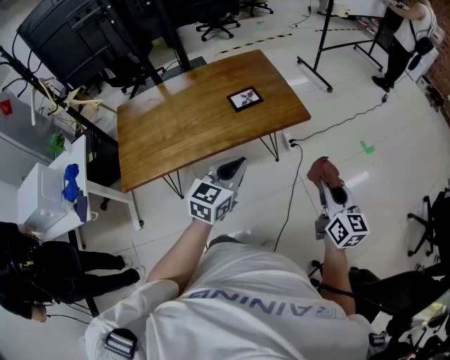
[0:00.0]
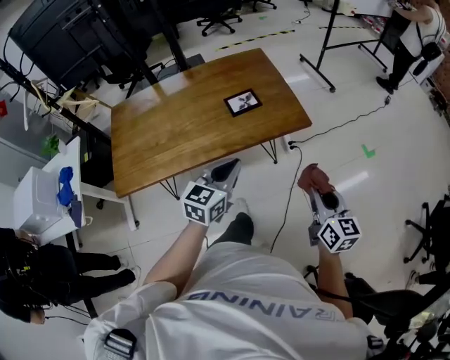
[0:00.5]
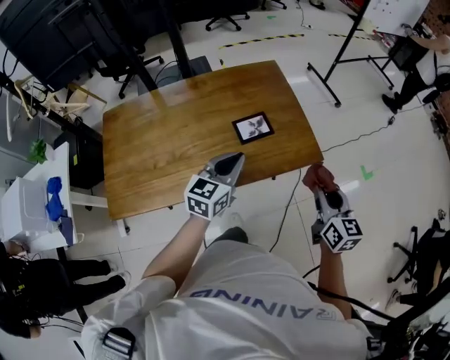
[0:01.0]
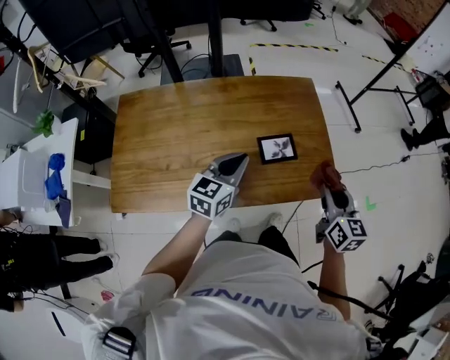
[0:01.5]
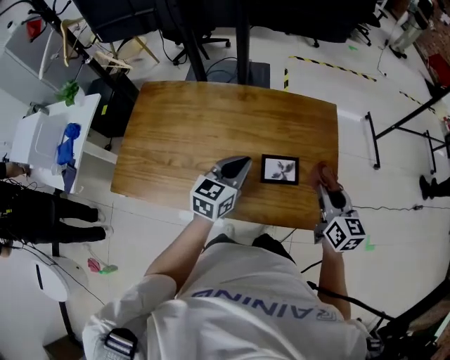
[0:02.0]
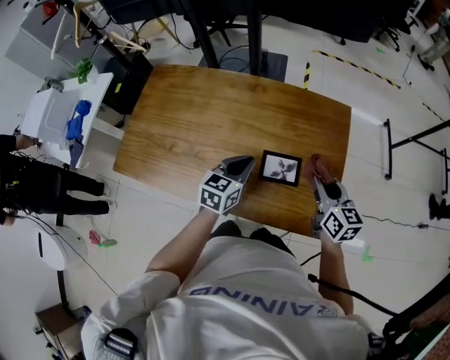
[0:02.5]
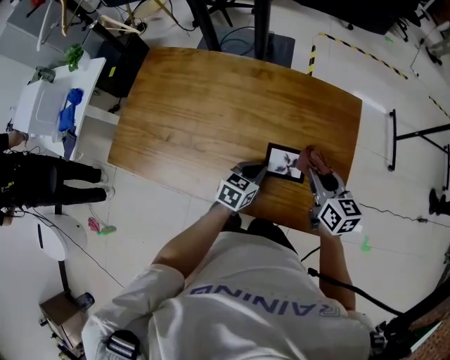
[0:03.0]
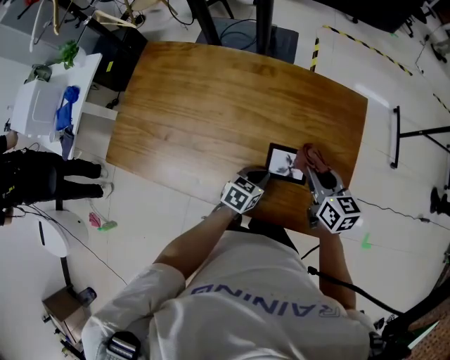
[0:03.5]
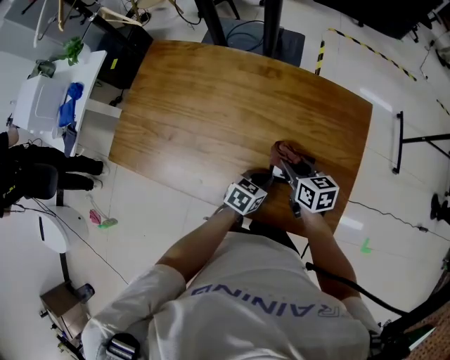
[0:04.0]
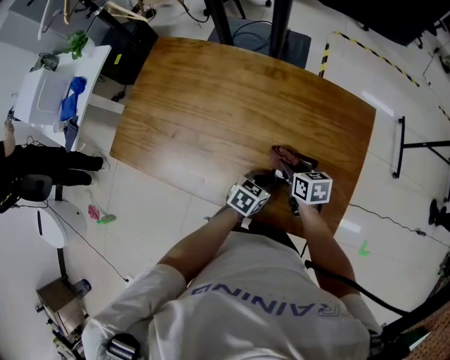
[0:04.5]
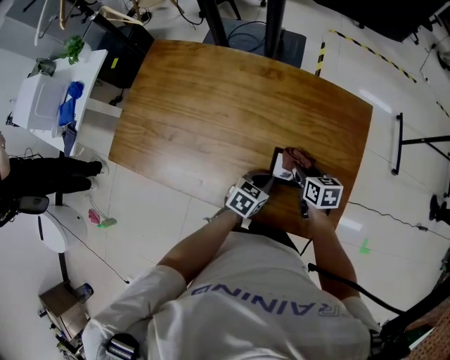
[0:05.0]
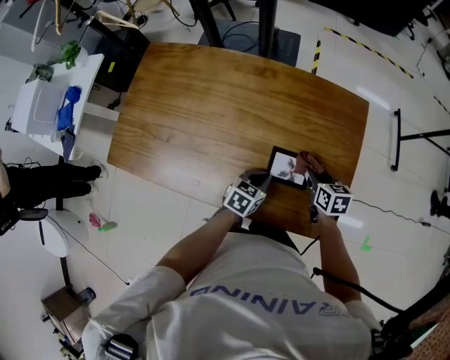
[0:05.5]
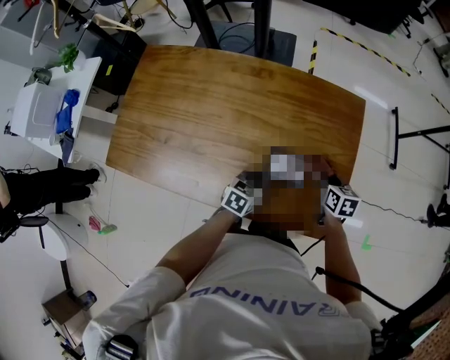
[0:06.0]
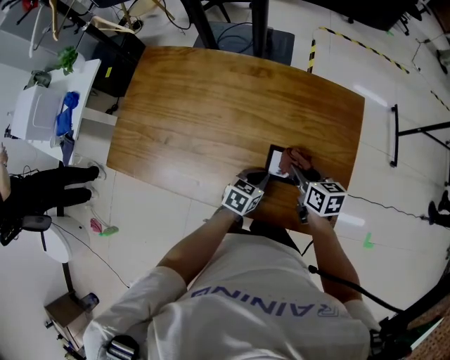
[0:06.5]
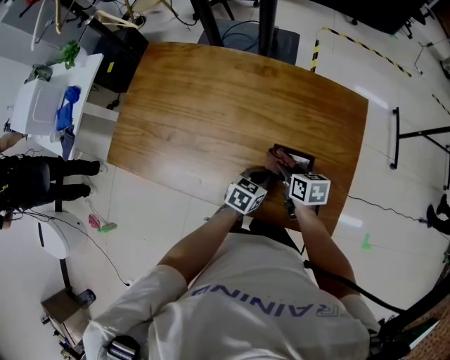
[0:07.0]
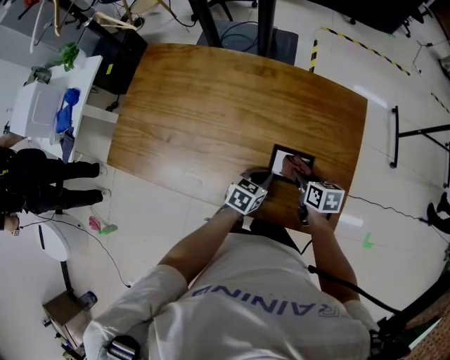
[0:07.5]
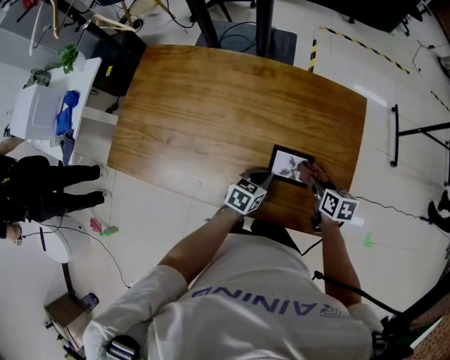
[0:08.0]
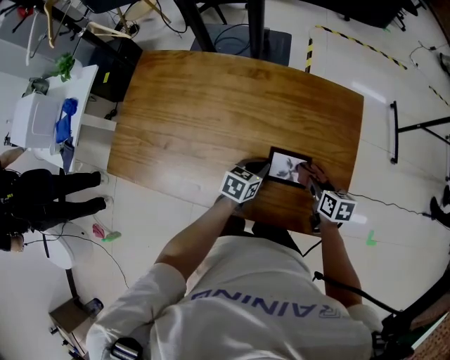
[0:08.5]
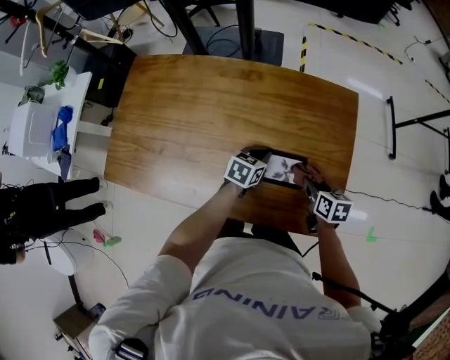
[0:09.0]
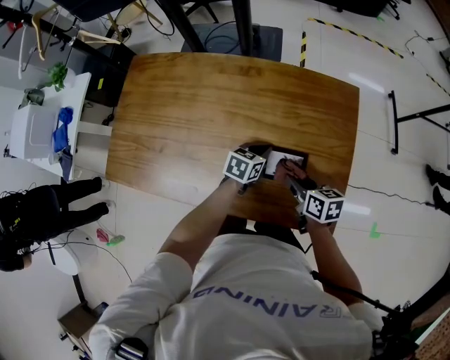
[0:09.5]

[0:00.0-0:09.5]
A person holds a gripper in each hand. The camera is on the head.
0:00.0 to 0:02.0: The left gripper changes place by some 35 cm, and swivels approximately 30 degrees. Meanwhile the right gripper changes place by some 50 cm, and turns by about 30 degrees.
0:02.0 to 0:04.0: The right gripper goes approximately 25 cm downward, to the left and forward, and swivels approximately 30 degrees; the left gripper travels downward by about 20 cm, and turns by about 30 degrees.
0:04.0 to 0:05.5: The right gripper shifts about 10 cm to the right.
0:05.5 to 0:07.5: The right gripper swings left and right, some 15 cm each way, with 2 reversals.
0:07.5 to 0:09.5: The left gripper shifts about 10 cm forward, while the right gripper goes to the right and returns, approximately 5 cm each way.

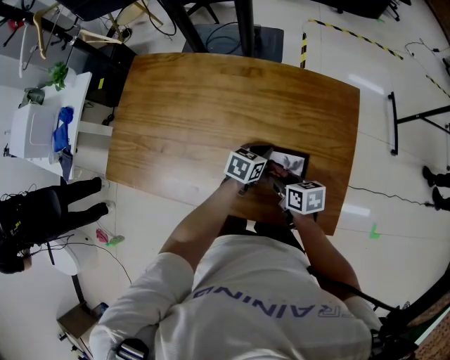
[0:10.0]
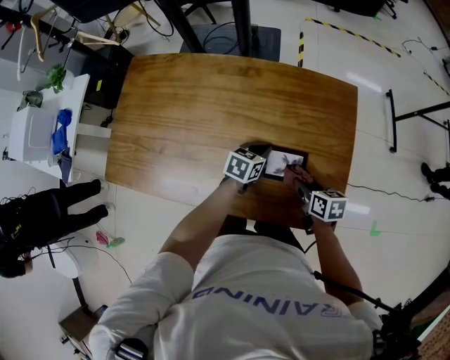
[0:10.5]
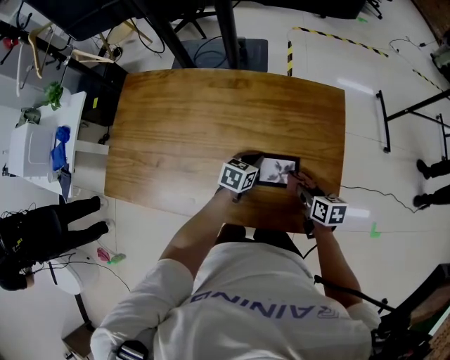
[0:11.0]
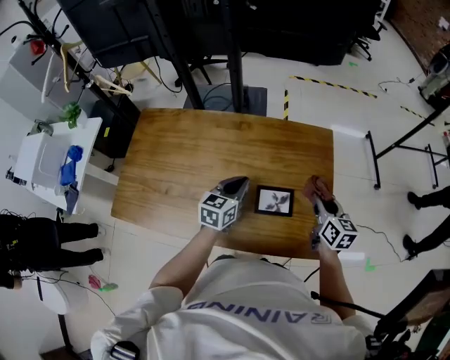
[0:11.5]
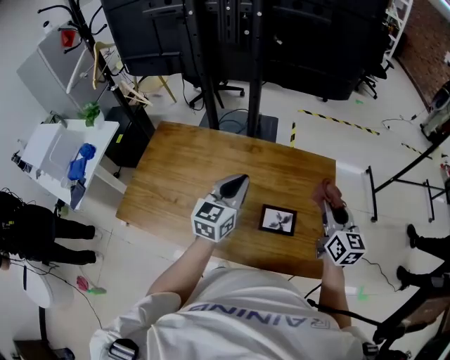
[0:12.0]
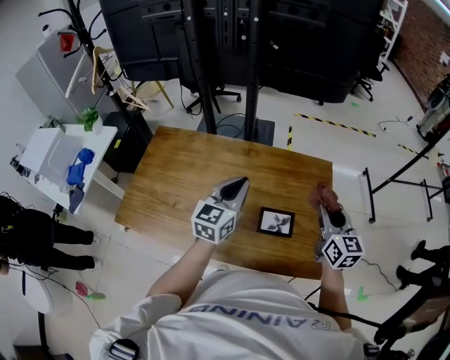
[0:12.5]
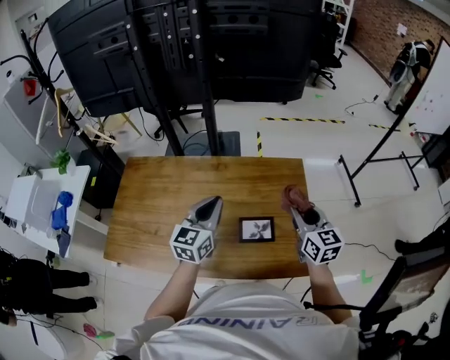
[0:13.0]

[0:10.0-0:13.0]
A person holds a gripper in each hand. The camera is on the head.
0:10.0 to 0:11.5: The right gripper heads to the right and upward, covering roughly 20 cm, and turns by some 40 degrees. Meanwhile the left gripper goes some 15 cm upward, and rotates roughly 20 degrees.
0:11.5 to 0:13.0: The grippers both shift upward by some 10 cm.

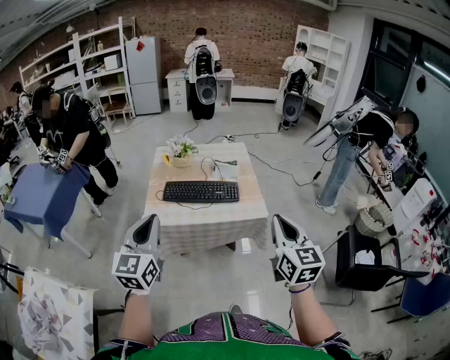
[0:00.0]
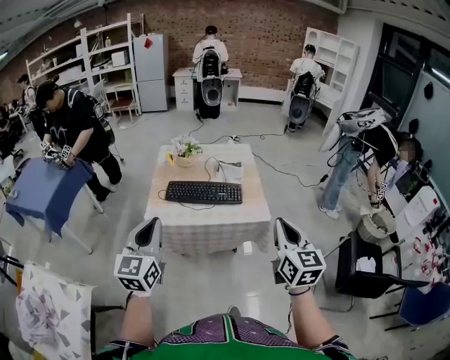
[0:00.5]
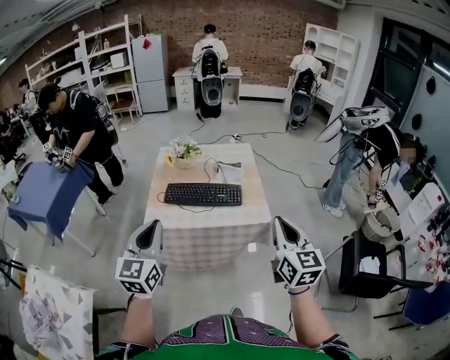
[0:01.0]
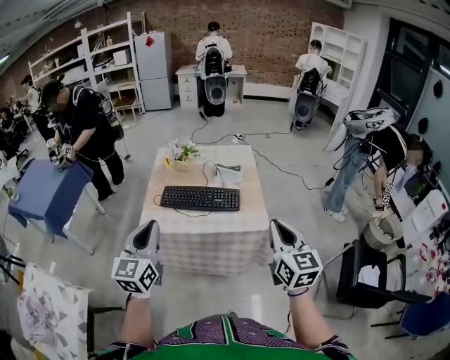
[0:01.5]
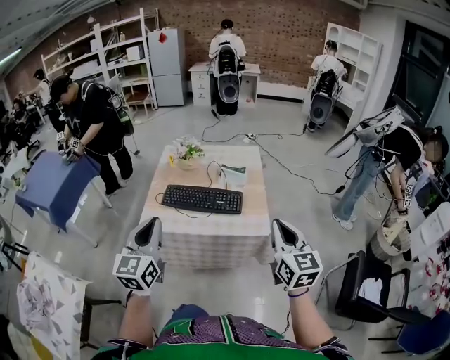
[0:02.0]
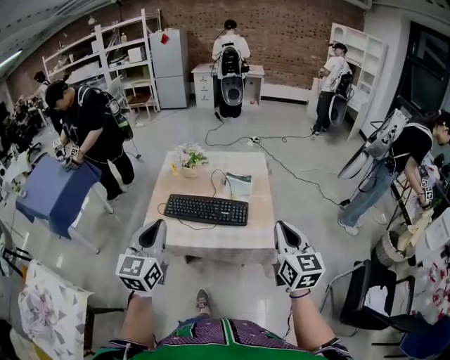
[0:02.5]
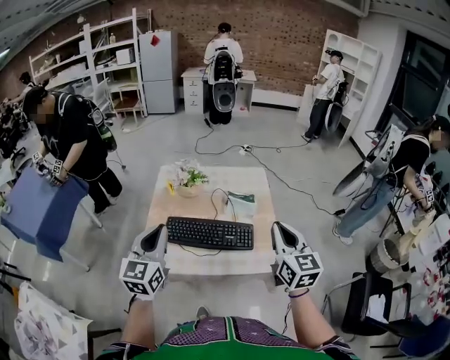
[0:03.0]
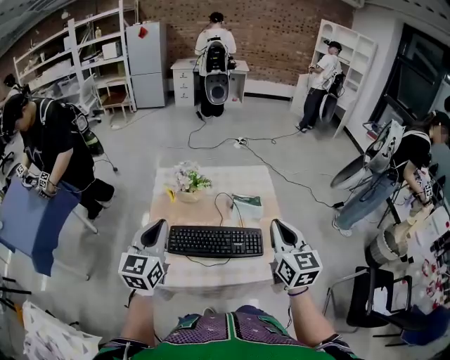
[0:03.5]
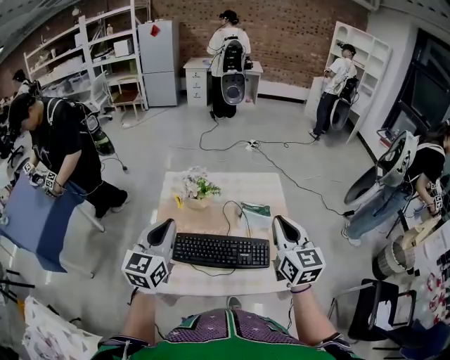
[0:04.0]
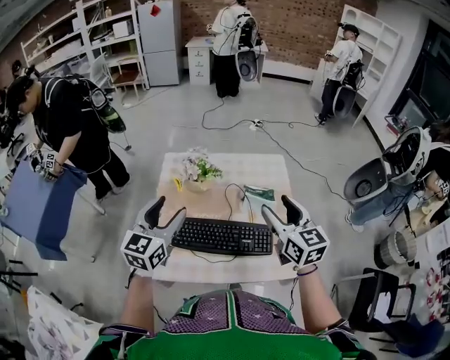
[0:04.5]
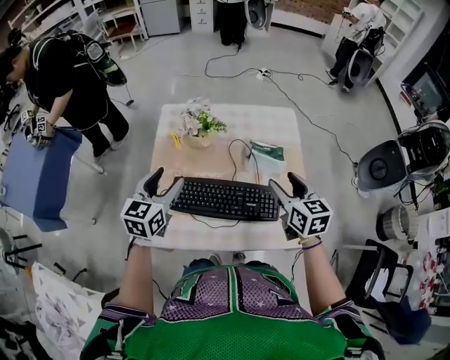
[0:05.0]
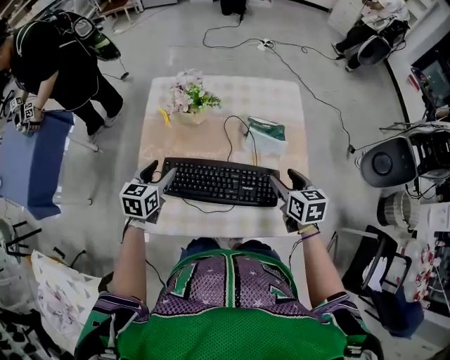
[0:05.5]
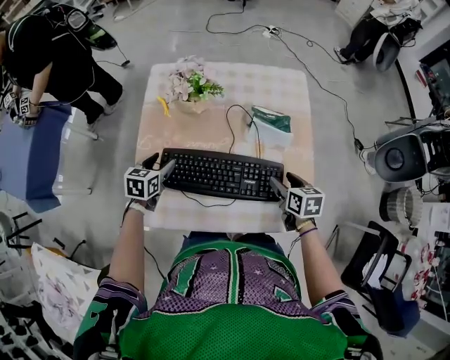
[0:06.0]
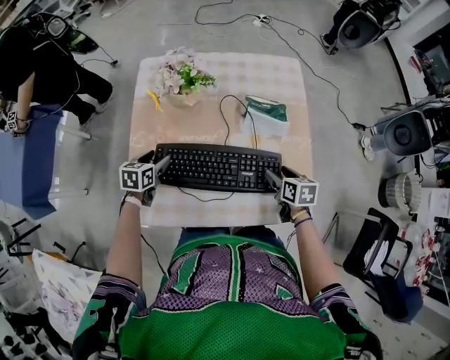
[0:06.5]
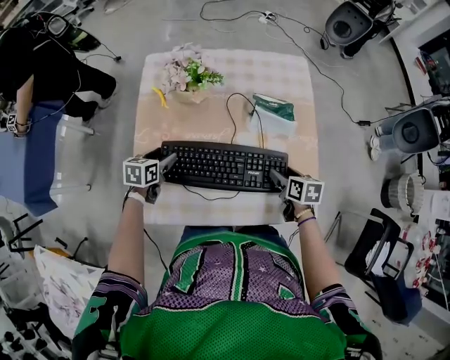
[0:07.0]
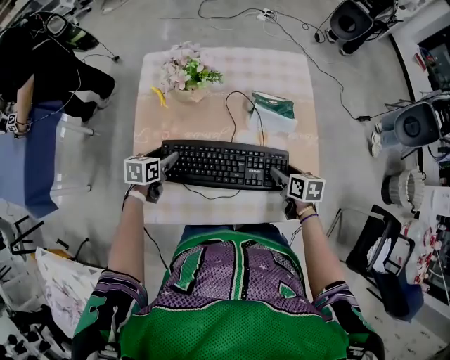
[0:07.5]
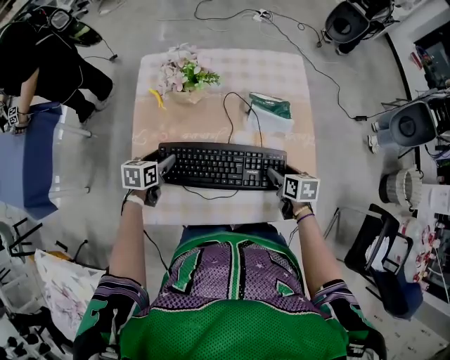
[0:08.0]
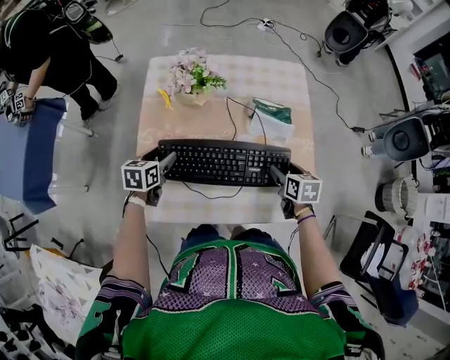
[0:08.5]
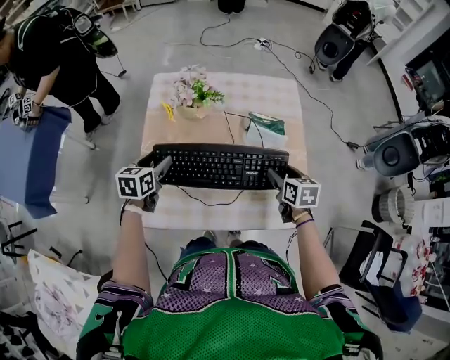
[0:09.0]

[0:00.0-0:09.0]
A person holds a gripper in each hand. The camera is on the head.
0:00.0 to 0:02.0: The two grippers go roughly 15 cm forward and to the right.
0:02.0 to 0:04.5: The right gripper is displaced forward and to the left by some 40 cm, and opens, while the left gripper goes approximately 35 cm forward, and opens.
0:04.5 to 0:07.0: The grippers both shift downward by roughly 35 cm. The right gripper angles its fingers downward, by some 40 degrees. Meanwhile the left gripper tilts its fingers some 40 degrees downward.
0:07.0 to 0:09.0: Both grippers move upward, approximately 10 cm.

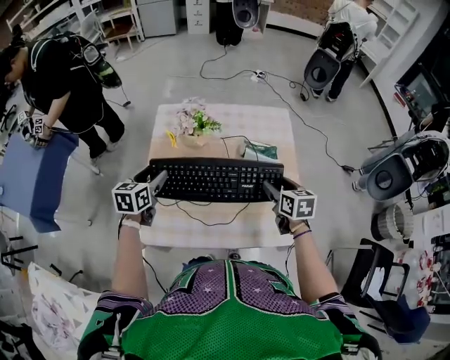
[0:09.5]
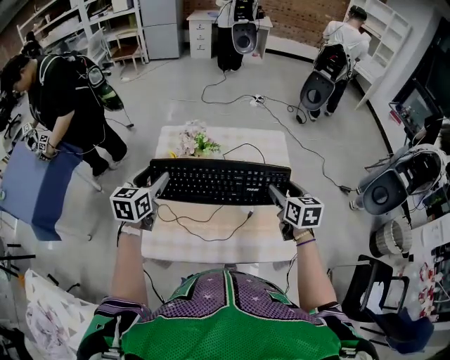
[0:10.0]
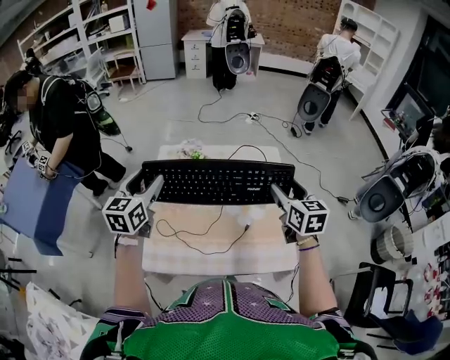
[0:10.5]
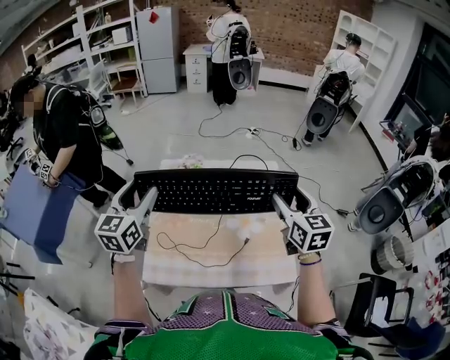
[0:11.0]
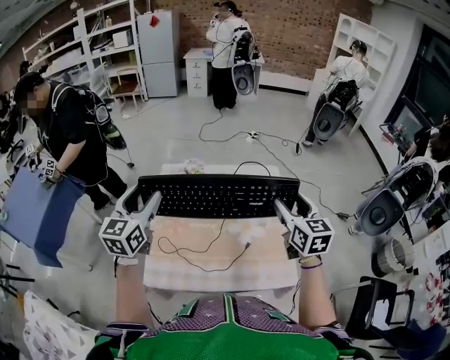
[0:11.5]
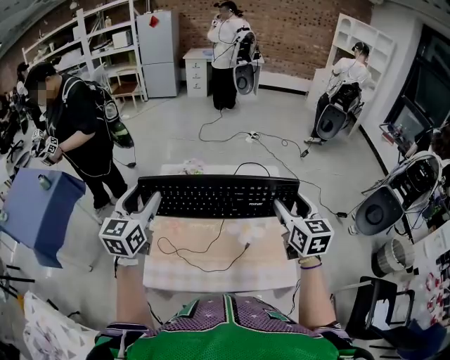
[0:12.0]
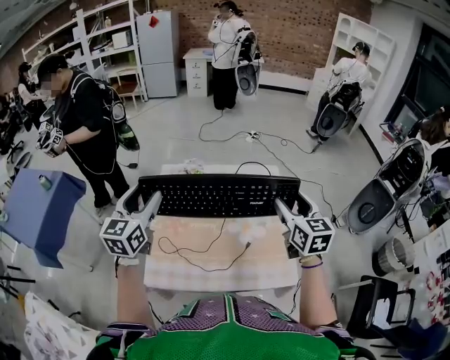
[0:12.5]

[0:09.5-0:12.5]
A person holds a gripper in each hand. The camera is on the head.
0:09.5 to 0:11.0: The two grippers go approximately 25 cm upward. The left gripper rotates approximately 30 degrees. Meanwhile the right gripper changes its angle by approximately 30 degrees.
0:11.0 to 0:12.5: Both grippers stay put.

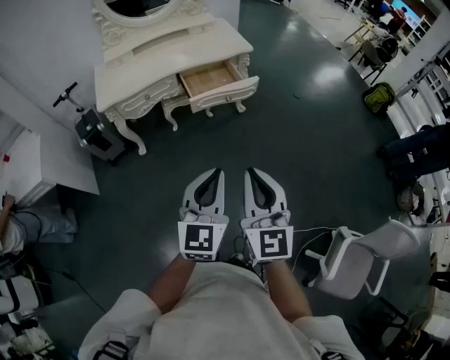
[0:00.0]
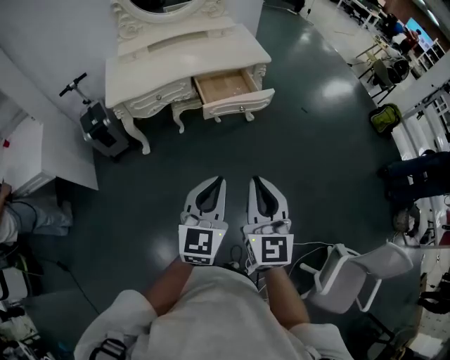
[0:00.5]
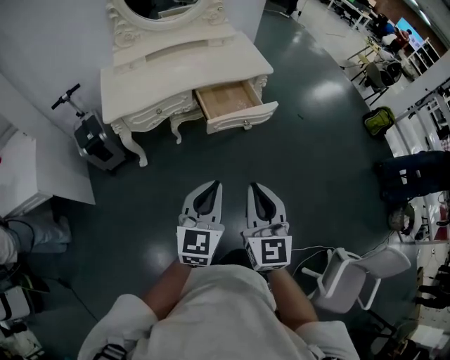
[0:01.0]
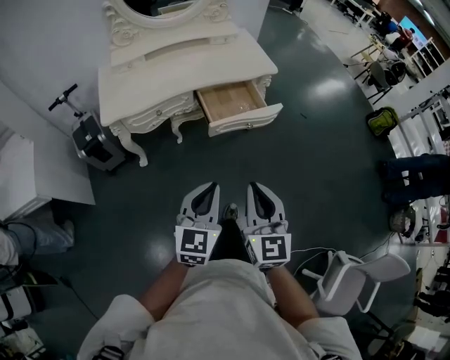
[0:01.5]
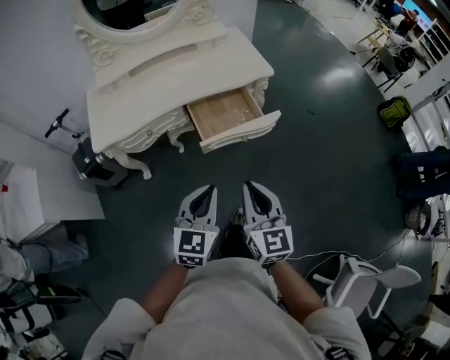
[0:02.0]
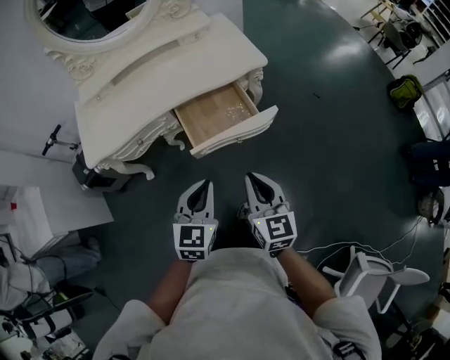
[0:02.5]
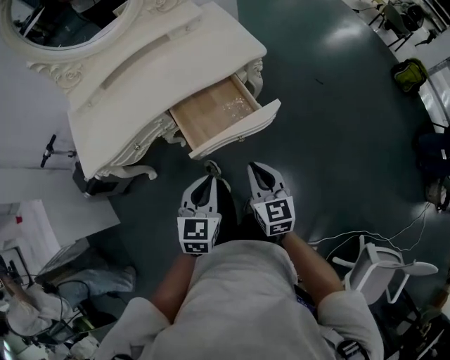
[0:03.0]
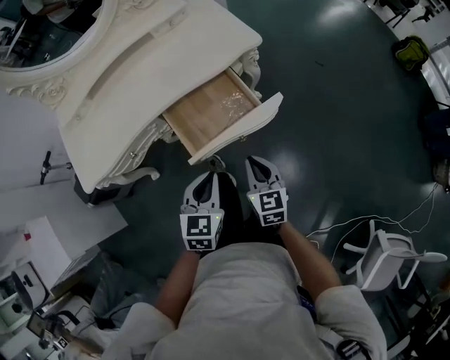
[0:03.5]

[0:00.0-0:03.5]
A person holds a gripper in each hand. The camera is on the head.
0:00.0 to 0:02.0: The two grippers go roughly 25 cm forward and downward.
0:02.0 to 0:03.5: The right gripper is displaced downward and forward by approximately 30 cm. Meanwhile the left gripper is displaced forward and downward by about 25 cm.
